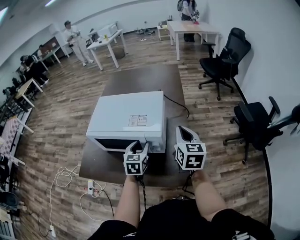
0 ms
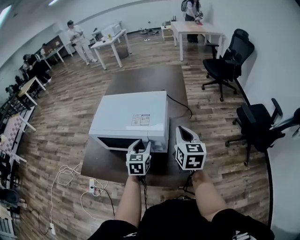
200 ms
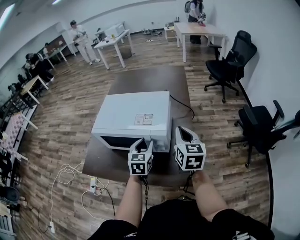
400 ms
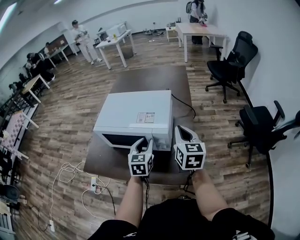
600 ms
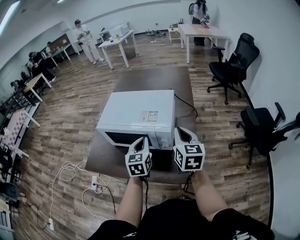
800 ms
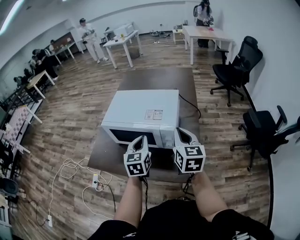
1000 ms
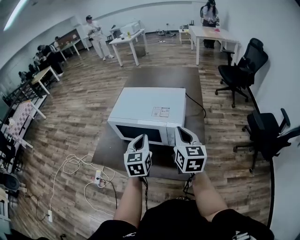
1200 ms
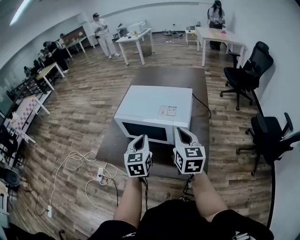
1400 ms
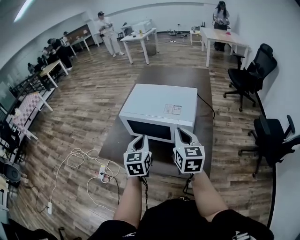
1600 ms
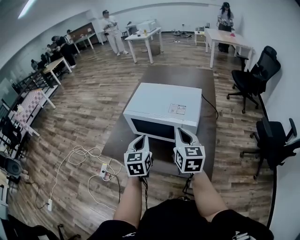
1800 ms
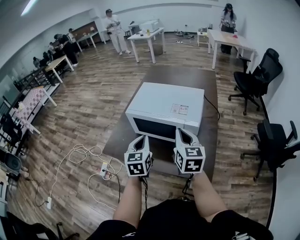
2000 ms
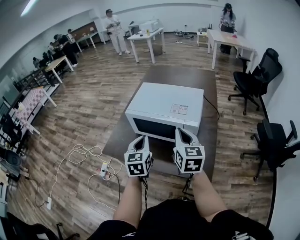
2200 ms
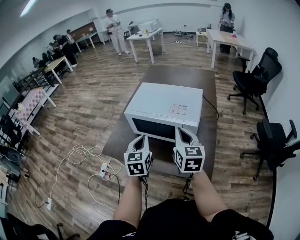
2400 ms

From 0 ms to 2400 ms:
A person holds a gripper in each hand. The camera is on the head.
From 0 ms to 1200 ms: The left gripper heads upward, to the left and backward, covering roughly 15 cm, and closes up, while the right gripper moves to the left and backward, approximately 10 cm.
From 1200 ms to 2400 ms: The grippers both shift to the left by some 10 cm.

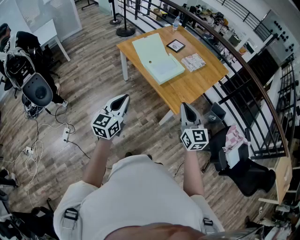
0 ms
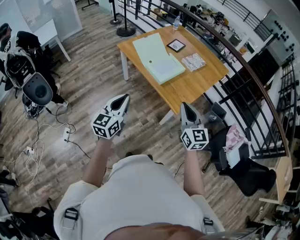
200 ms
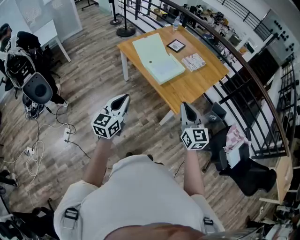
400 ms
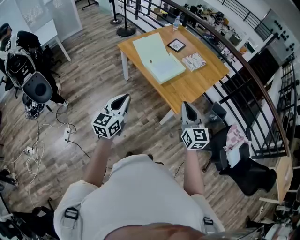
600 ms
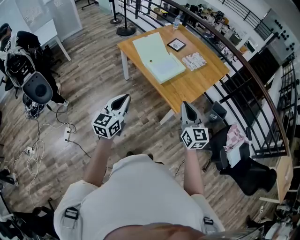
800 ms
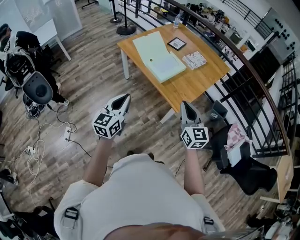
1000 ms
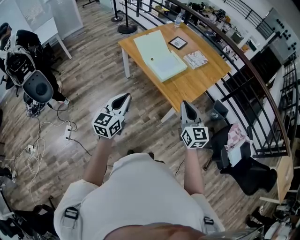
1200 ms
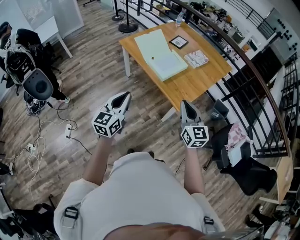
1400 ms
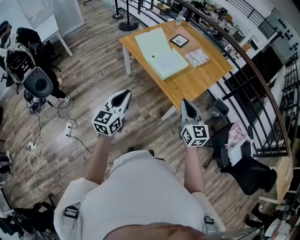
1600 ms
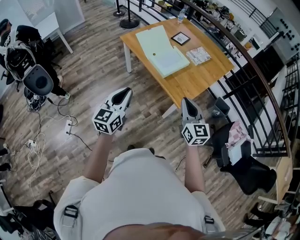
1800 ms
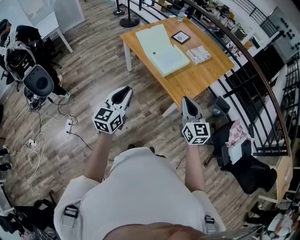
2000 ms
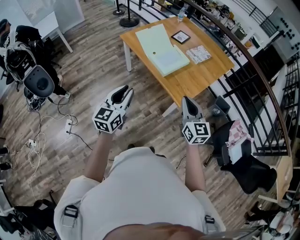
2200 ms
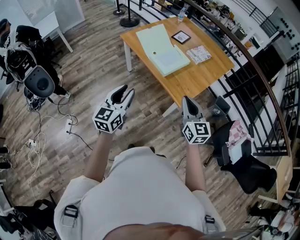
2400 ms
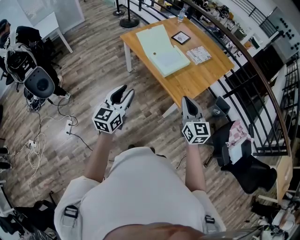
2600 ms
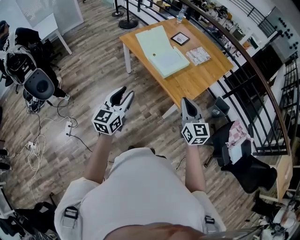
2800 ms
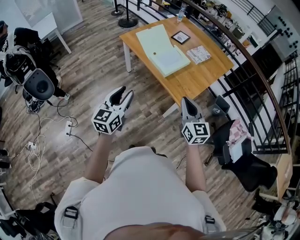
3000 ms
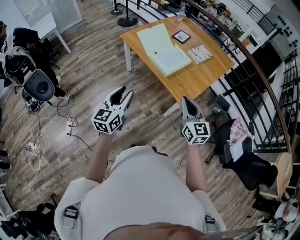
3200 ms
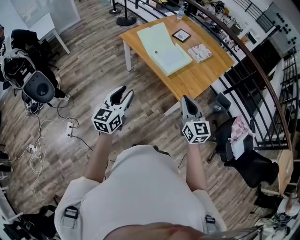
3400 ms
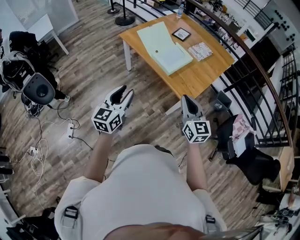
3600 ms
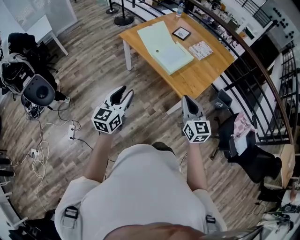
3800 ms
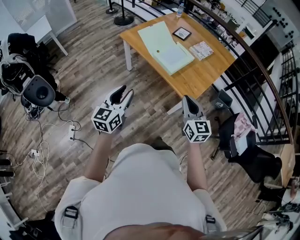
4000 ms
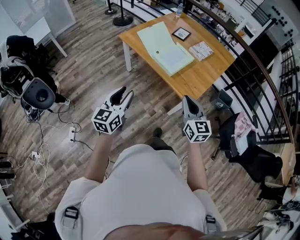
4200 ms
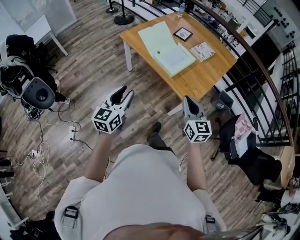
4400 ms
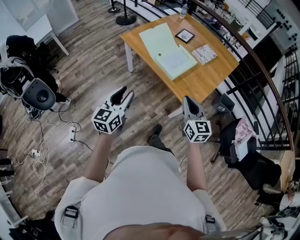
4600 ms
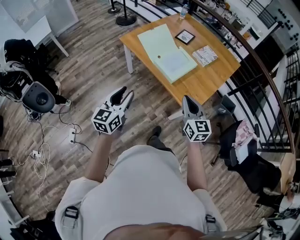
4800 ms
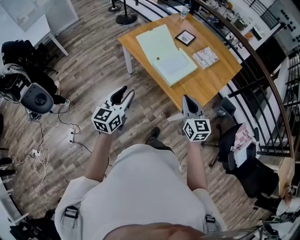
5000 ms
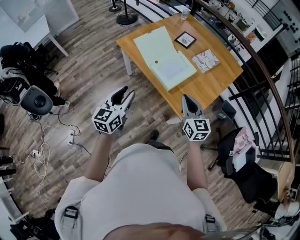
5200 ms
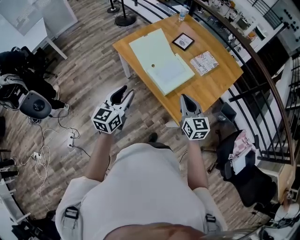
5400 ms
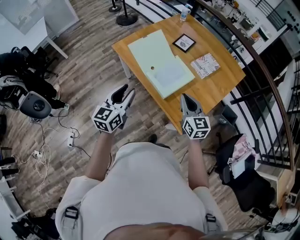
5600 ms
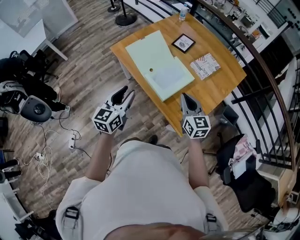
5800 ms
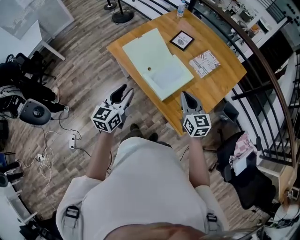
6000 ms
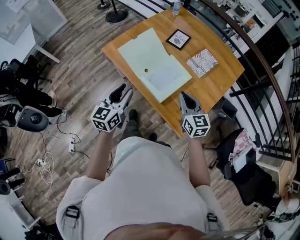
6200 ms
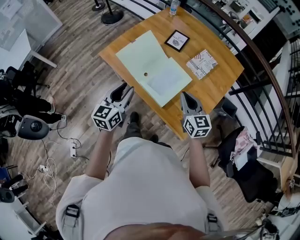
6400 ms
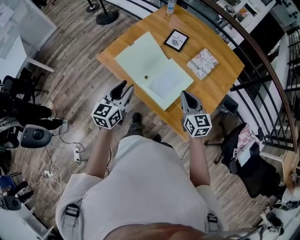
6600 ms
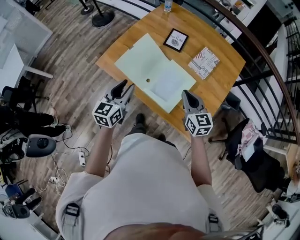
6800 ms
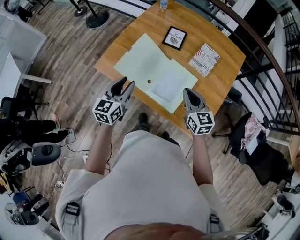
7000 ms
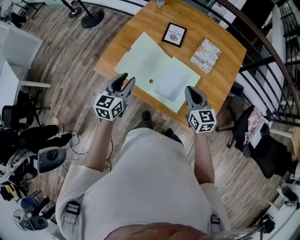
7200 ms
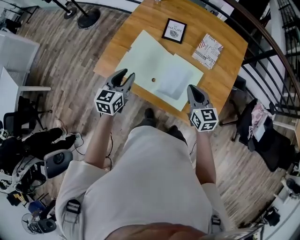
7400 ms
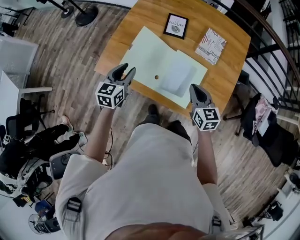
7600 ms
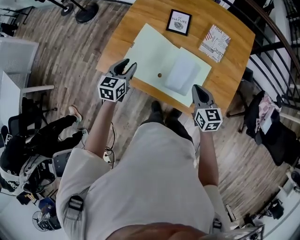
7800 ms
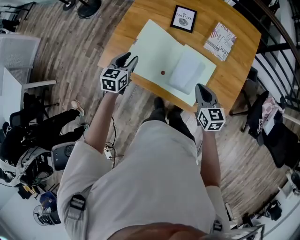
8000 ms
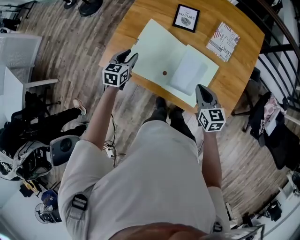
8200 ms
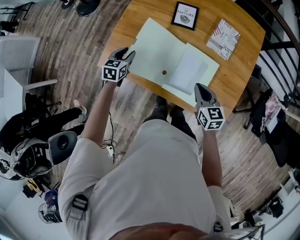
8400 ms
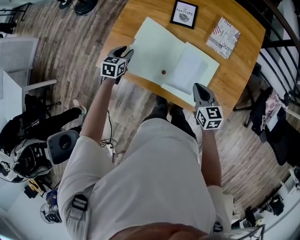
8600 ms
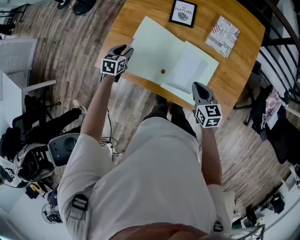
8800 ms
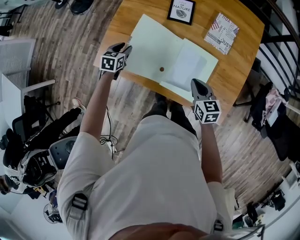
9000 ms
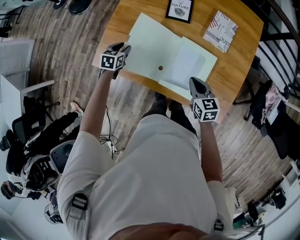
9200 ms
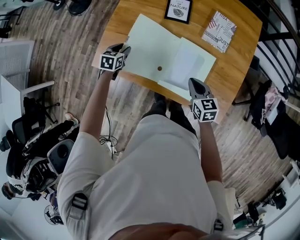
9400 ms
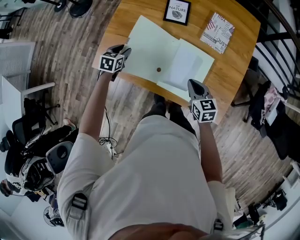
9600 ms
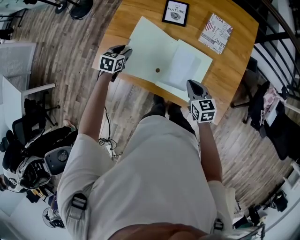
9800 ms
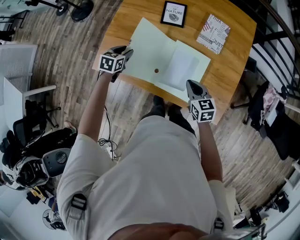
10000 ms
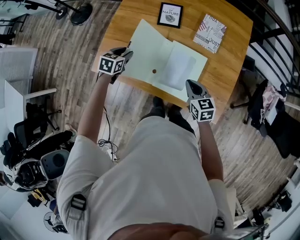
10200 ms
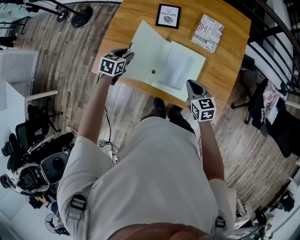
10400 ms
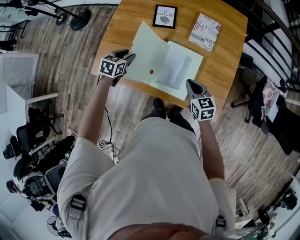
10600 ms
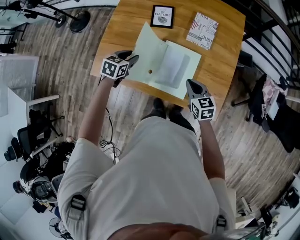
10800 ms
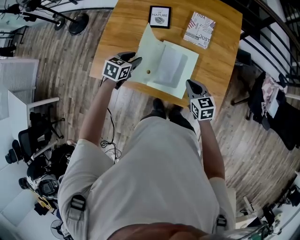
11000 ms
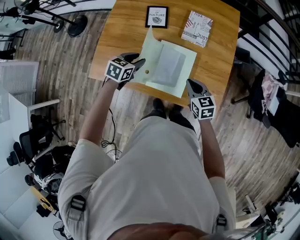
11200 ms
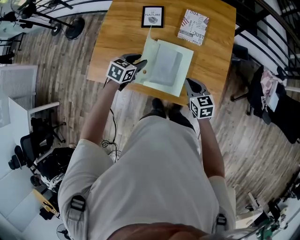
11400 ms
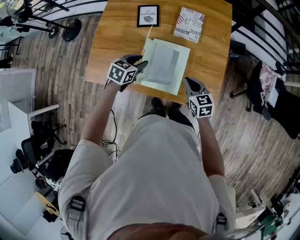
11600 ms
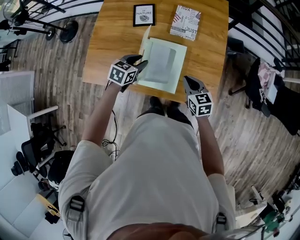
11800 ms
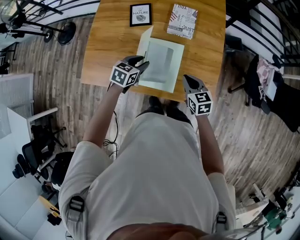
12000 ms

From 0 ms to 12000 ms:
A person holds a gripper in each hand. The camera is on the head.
From 0 ms to 1600 ms: The grippers stay close to where they were, moving slightly.
From 1600 ms to 3000 ms: The left gripper opens up.
From 3000 ms to 4400 ms: The right gripper goes about 5 cm to the left. The left gripper heads to the left and forward, covering approximately 10 cm.
From 4400 ms to 6000 ms: The grippers both shift forward by some 30 cm.
From 6000 ms to 7600 ms: The left gripper shifts about 30 cm forward, and swivels approximately 30 degrees. The right gripper is displaced forward, to the left and downward by approximately 20 cm, and swivels roughly 30 degrees.
From 7600 ms to 9000 ms: The right gripper travels downward by approximately 10 cm, while the left gripper is displaced downward and forward by roughly 20 cm, and swivels roughly 20 degrees.
From 9000 ms to 10400 ms: The left gripper is displaced to the right and upward by about 10 cm, while the right gripper changes place by roughly 5 cm.
From 10400 ms to 12000 ms: The right gripper goes about 10 cm to the right. The left gripper heads to the right, covering about 20 cm.

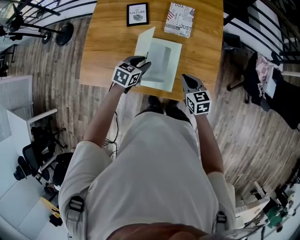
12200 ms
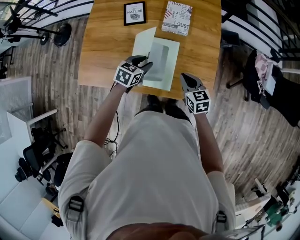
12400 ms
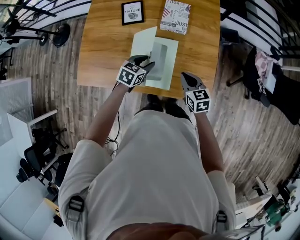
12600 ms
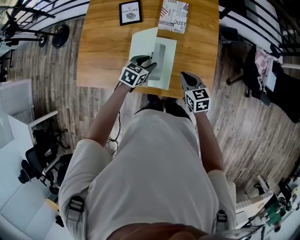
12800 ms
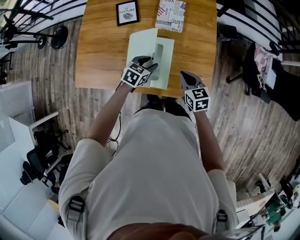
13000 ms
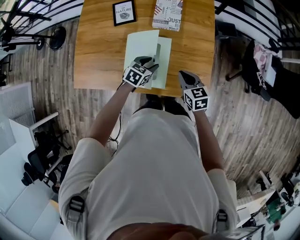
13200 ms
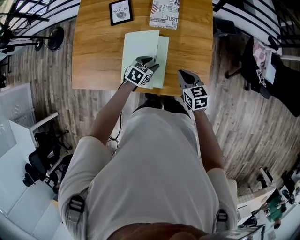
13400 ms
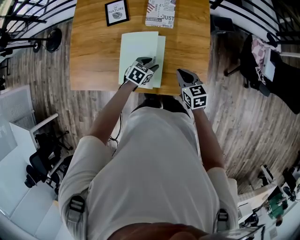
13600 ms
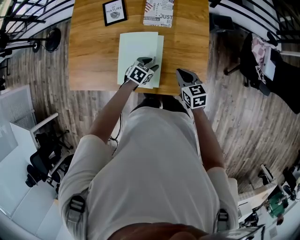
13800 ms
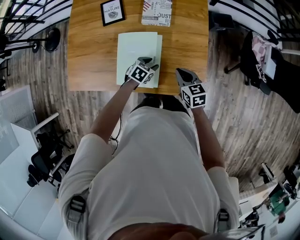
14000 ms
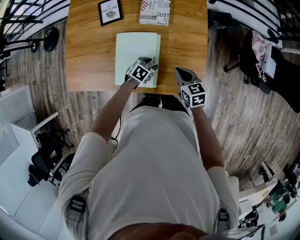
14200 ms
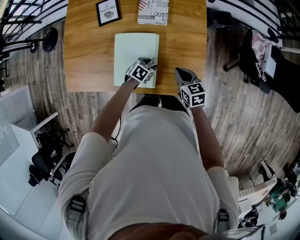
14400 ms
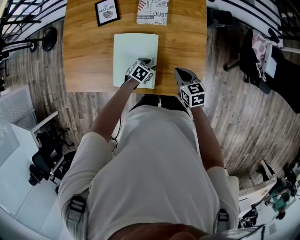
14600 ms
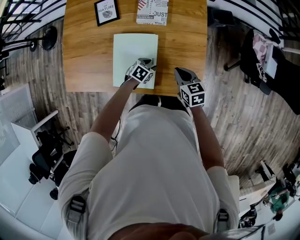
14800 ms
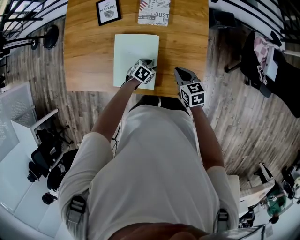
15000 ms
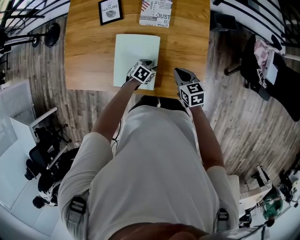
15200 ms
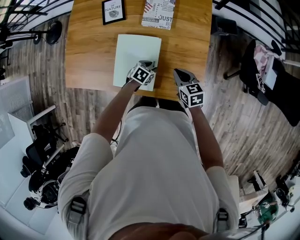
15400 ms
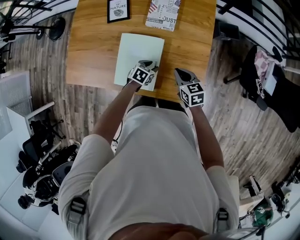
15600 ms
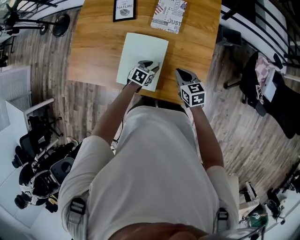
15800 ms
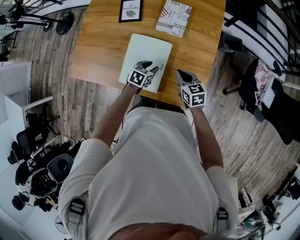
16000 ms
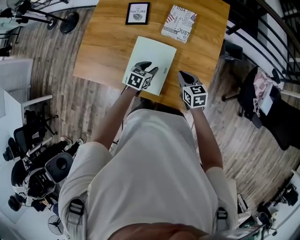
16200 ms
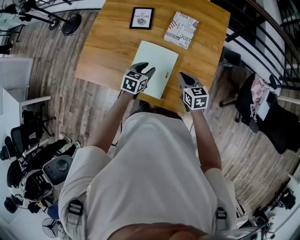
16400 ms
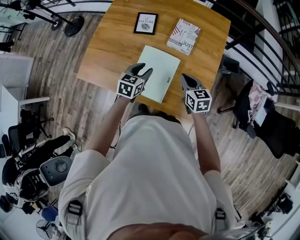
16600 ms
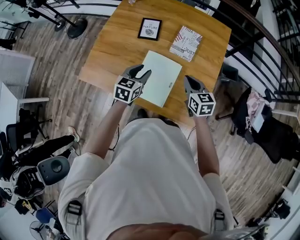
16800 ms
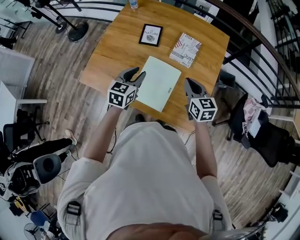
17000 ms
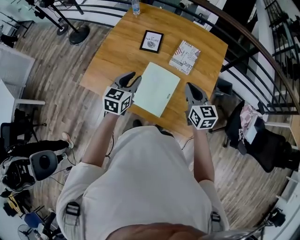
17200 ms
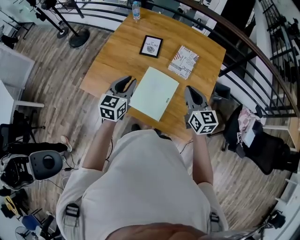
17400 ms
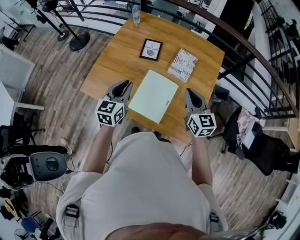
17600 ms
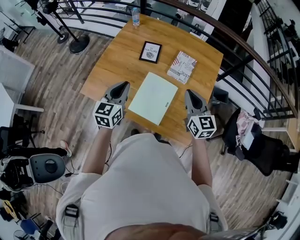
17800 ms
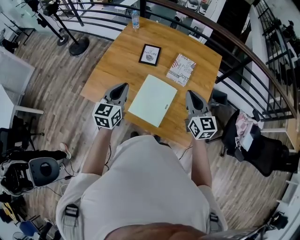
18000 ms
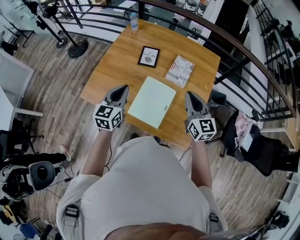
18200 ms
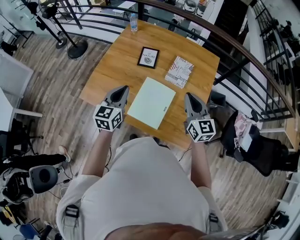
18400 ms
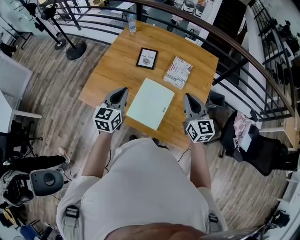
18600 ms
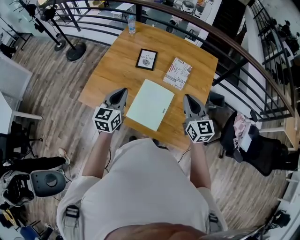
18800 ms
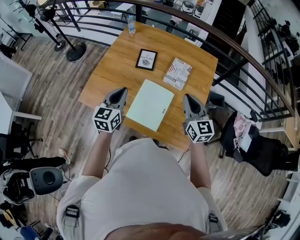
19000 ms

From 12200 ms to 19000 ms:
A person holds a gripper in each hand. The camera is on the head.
From 12200 ms to 13600 ms: The left gripper heads to the right and downward, covering roughly 15 cm; the right gripper heads to the right, covering approximately 5 cm.
From 13600 ms to 15000 ms: The left gripper heads downward, covering approximately 10 cm, while the right gripper ends up approximately 5 cm from where it was.
From 15000 ms to 16200 ms: The right gripper ends up some 5 cm from where it was. The left gripper is displaced upward and to the left by roughly 15 cm, and swivels approximately 30 degrees.
From 16200 ms to 17600 ms: The right gripper goes roughly 25 cm upward, and swivels approximately 30 degrees. Meanwhile the left gripper heads upward and to the left, covering approximately 30 cm, tilts its fingers some 30 degrees upward, and closes its fingers.
From 17600 ms to 19000 ms: The grippers move only a little.

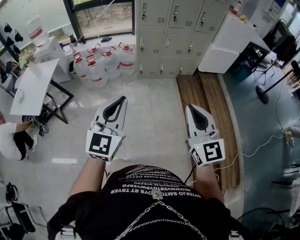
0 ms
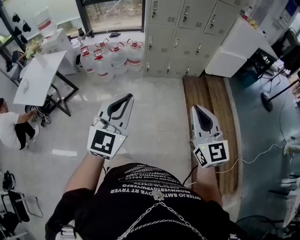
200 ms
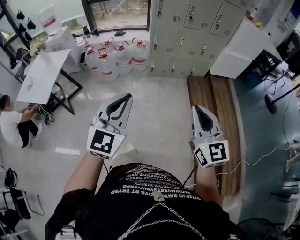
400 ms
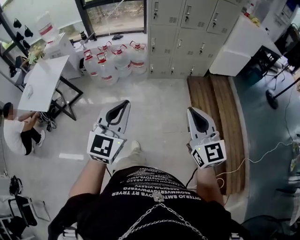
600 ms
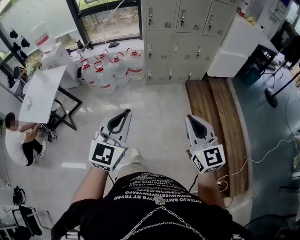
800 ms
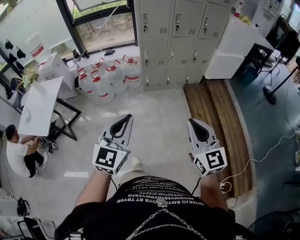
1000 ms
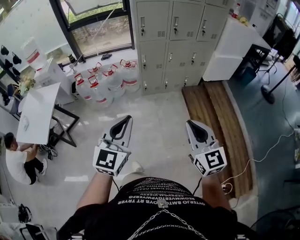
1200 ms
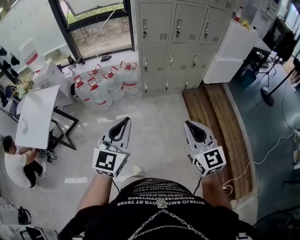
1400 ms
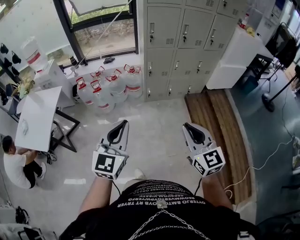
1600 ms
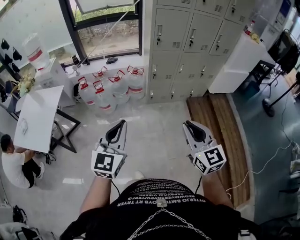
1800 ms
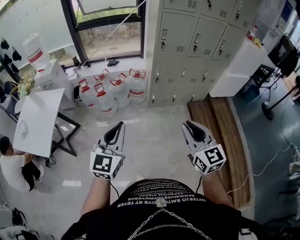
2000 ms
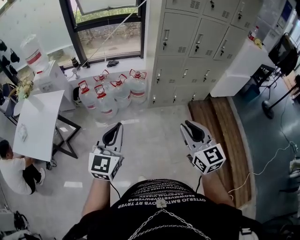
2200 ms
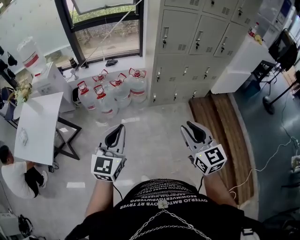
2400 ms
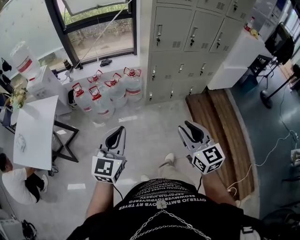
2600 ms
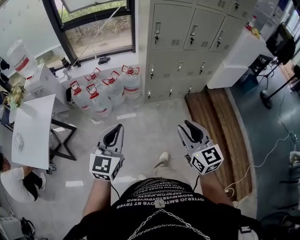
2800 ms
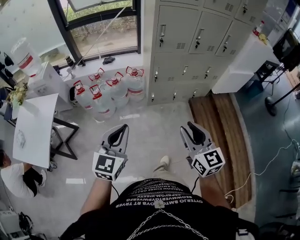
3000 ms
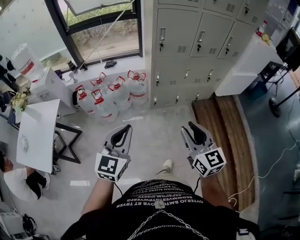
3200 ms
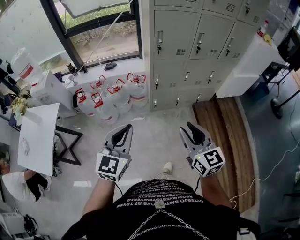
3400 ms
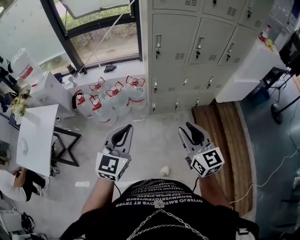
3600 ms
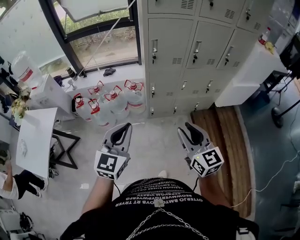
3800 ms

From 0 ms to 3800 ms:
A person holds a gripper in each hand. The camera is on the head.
From 0 ms to 1200 ms: The grippers both shift forward by some 10 cm.
From 1200 ms to 2600 ms: The left gripper shifts roughly 30 cm to the left and forward, while the right gripper heads forward and to the left, covering approximately 25 cm, and opens its fingers.
From 2600 ms to 3800 ms: Both grippers move forward and to the right, about 25 cm.
